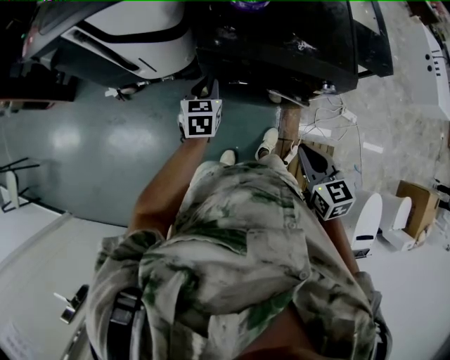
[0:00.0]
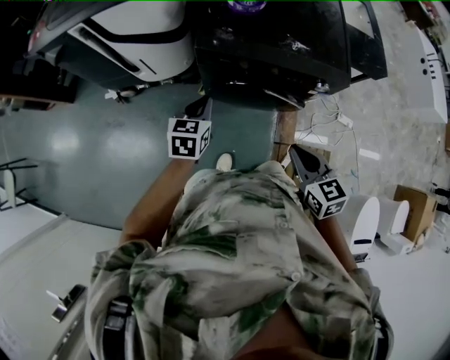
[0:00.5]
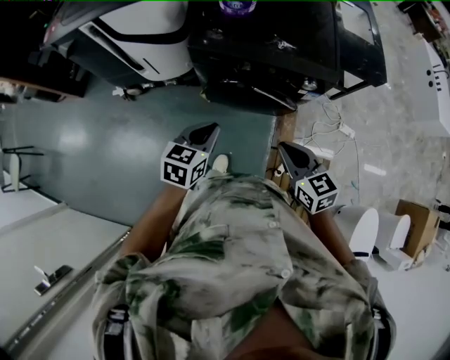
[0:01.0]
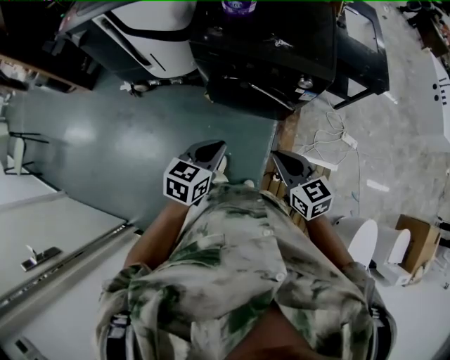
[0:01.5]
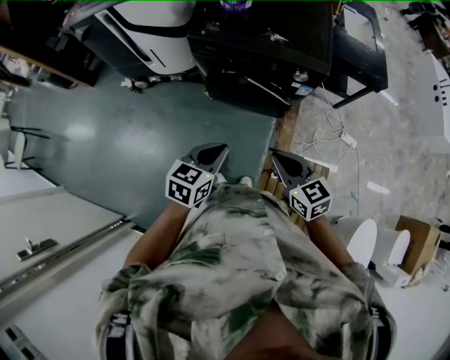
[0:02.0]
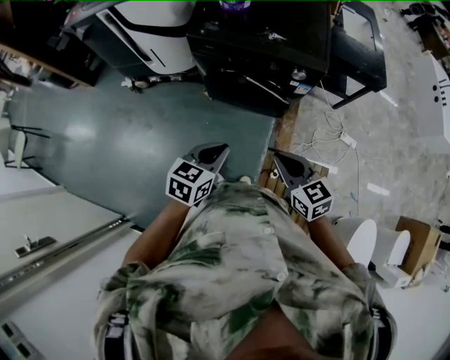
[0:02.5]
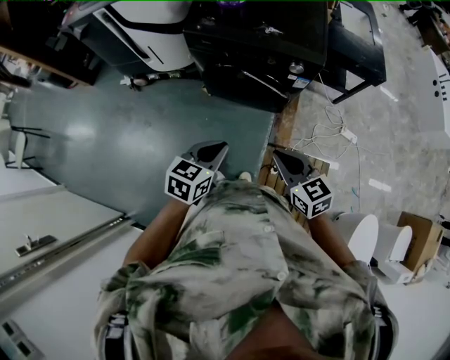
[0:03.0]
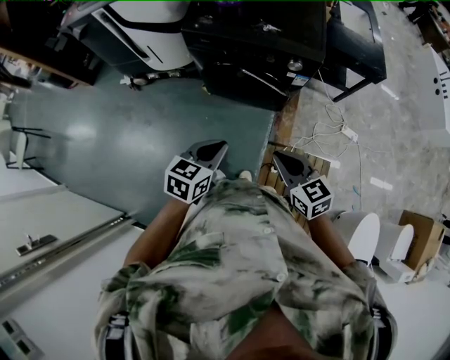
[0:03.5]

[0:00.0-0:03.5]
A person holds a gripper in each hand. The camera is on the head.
0:00.0 to 0:02.0: The left gripper is displaced backward and to the right by about 40 cm; the right gripper heads backward and to the right, covering some 20 cm, and swivels some 20 degrees.
0:02.0 to 0:03.5: The grippers move only a little.

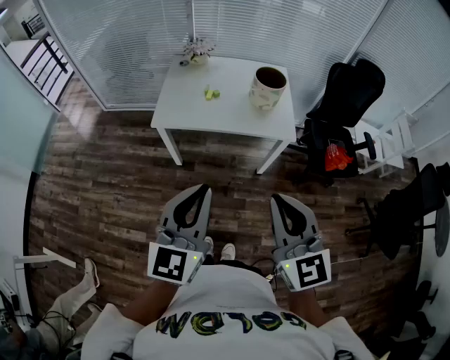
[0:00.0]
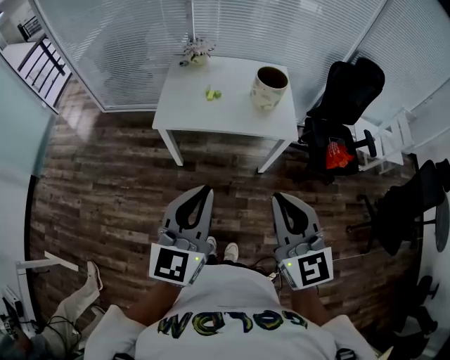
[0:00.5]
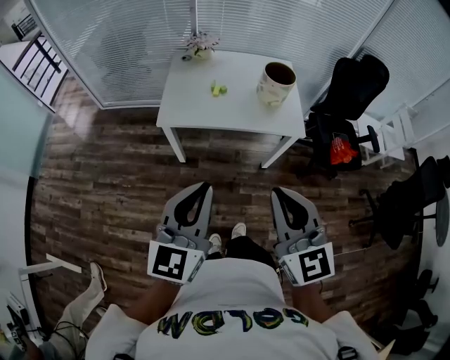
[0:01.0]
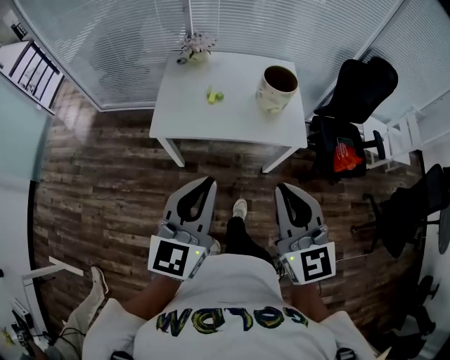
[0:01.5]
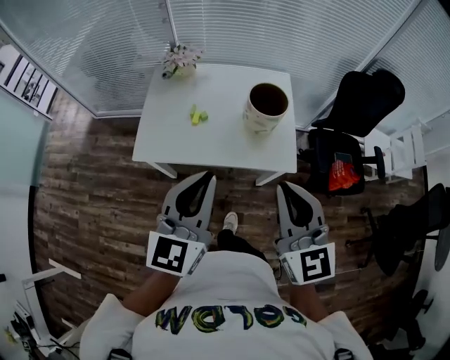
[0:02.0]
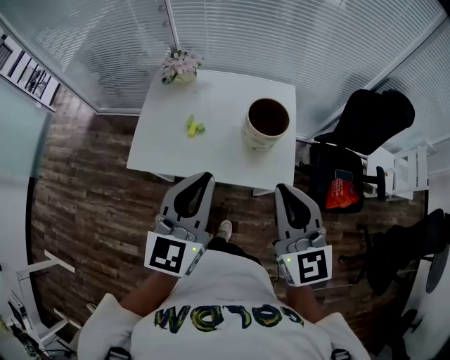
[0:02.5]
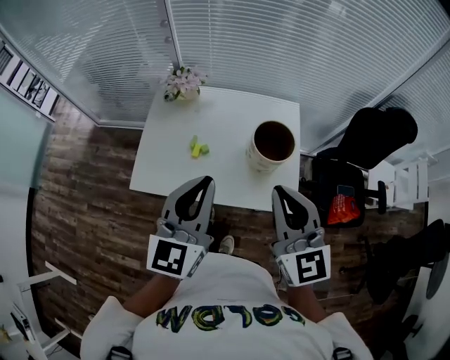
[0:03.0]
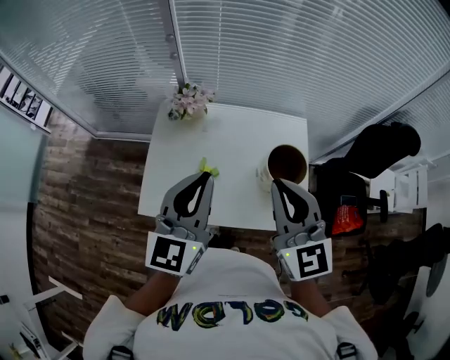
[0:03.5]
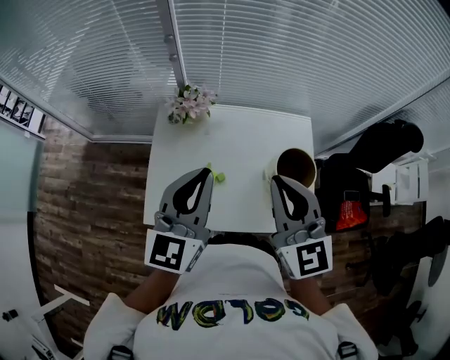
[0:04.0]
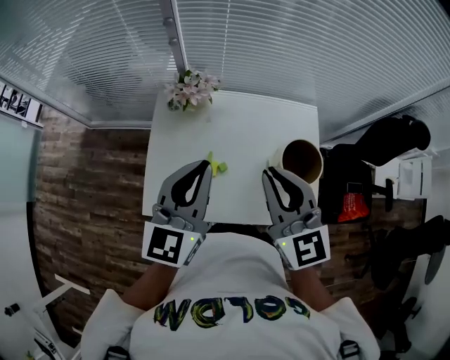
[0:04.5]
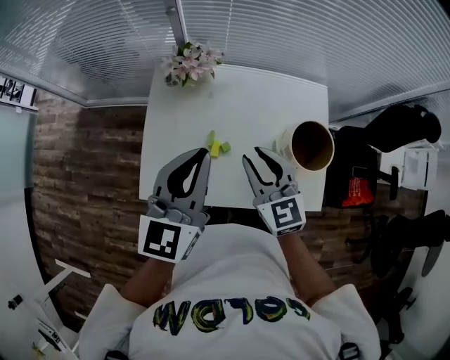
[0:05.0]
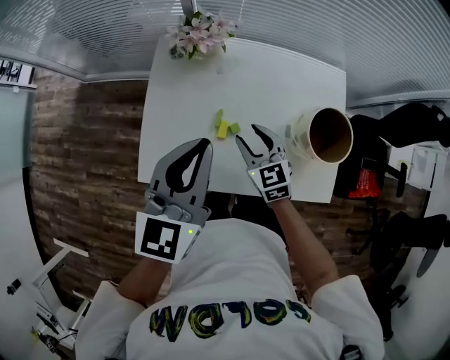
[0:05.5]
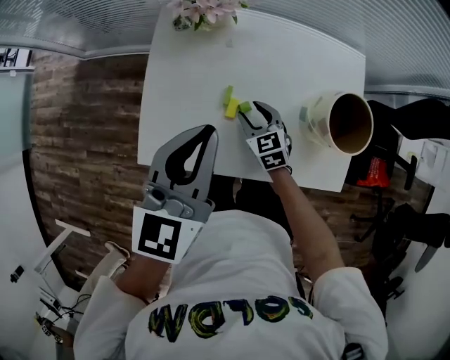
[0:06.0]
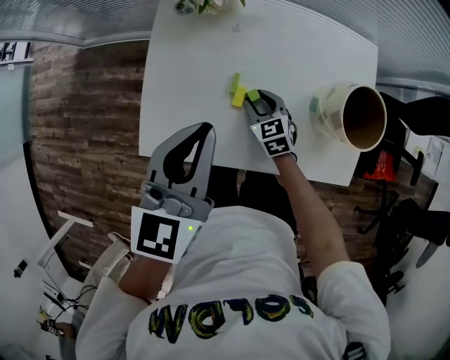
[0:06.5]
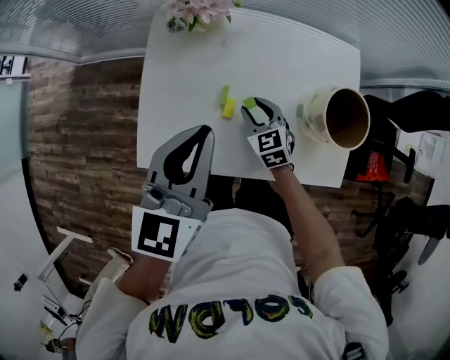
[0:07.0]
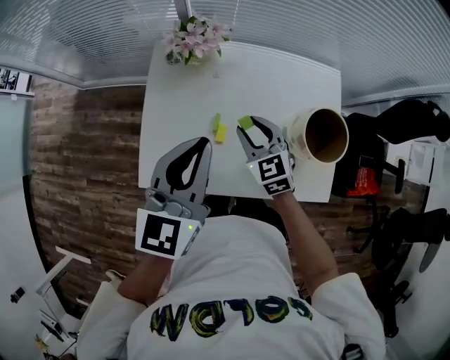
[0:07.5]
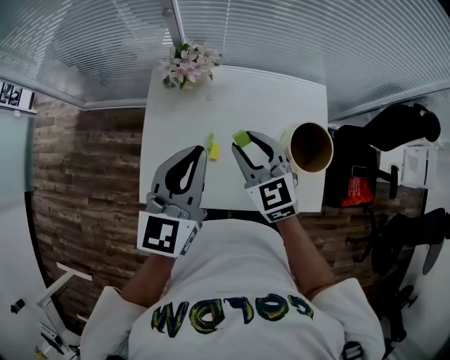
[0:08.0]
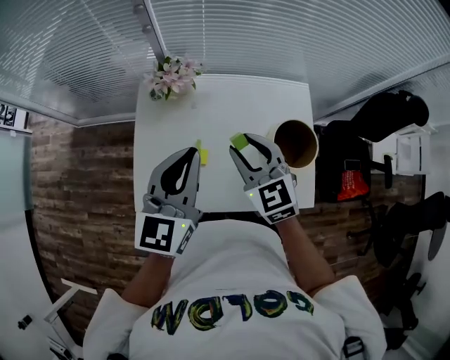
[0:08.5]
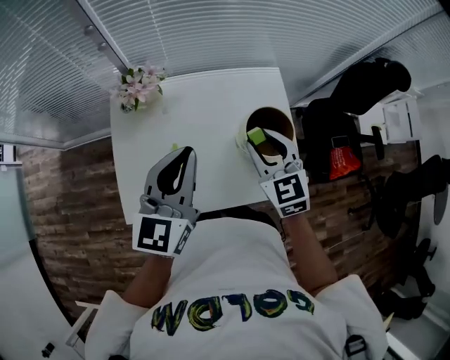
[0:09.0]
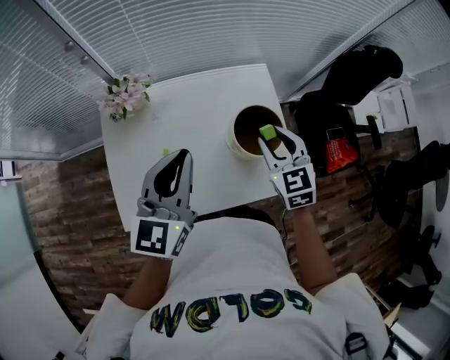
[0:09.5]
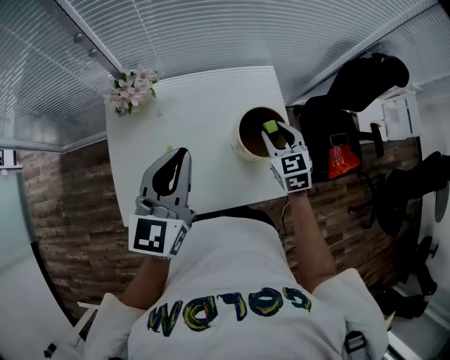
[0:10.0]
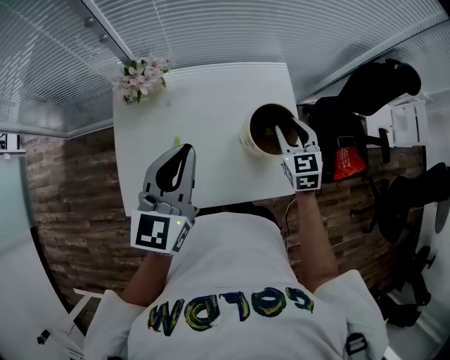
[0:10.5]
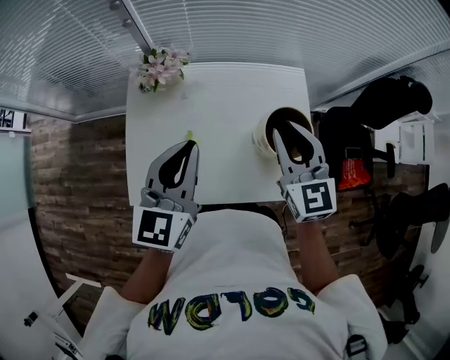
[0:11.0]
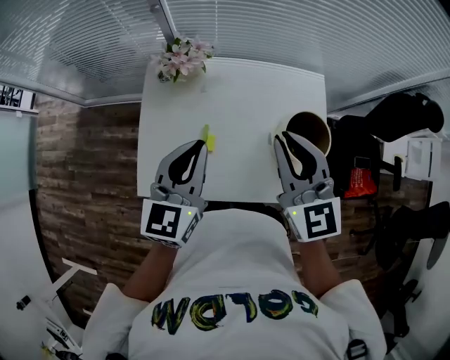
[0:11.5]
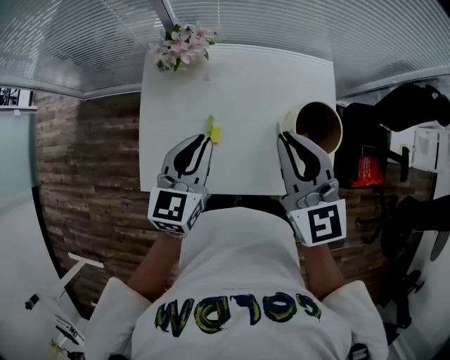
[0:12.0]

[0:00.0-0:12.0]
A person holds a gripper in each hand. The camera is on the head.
0:00.0 to 0:02.0: The grippers both shift forward by some 30 cm.
0:02.0 to 0:04.0: Both grippers move forward, roughly 30 cm.
0:04.0 to 0:06.0: The left gripper is displaced downward by roughly 15 cm, while the right gripper is displaced downward by roughly 40 cm, tilts its fingers about 40 degrees downward, and opens its fingers.
0:06.0 to 0:08.0: The right gripper moves upward, roughly 25 cm, while the left gripper is displaced upward by about 5 cm.
0:08.0 to 0:10.0: The left gripper moves to the right, some 10 cm. Meanwhile the right gripper heads to the right, covering roughly 25 cm, and changes its angle by some 30 degrees.
0:10.0 to 0:12.0: The left gripper shifts about 15 cm downward and to the left. Meanwhile the right gripper heads to the left and upward, covering roughly 25 cm, swivels about 30 degrees, and closes up.

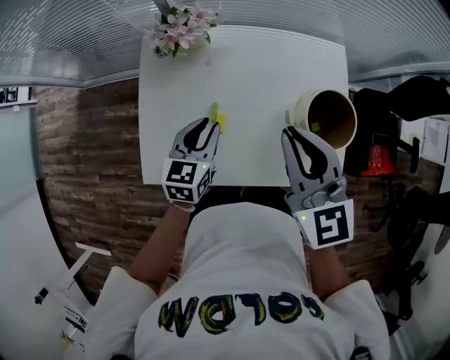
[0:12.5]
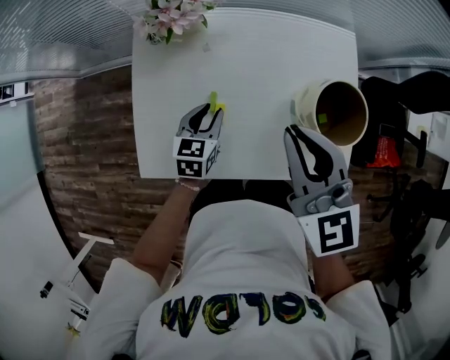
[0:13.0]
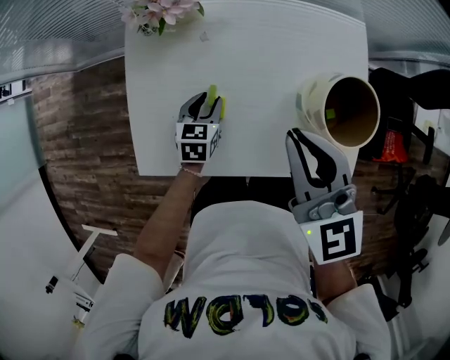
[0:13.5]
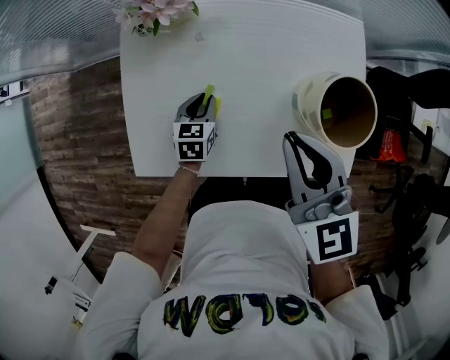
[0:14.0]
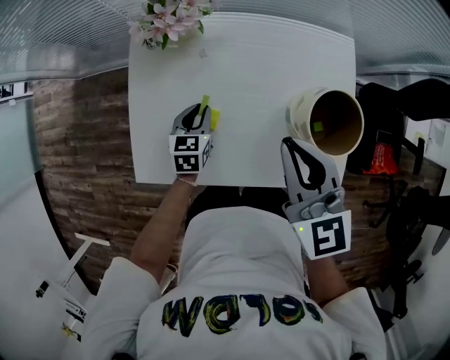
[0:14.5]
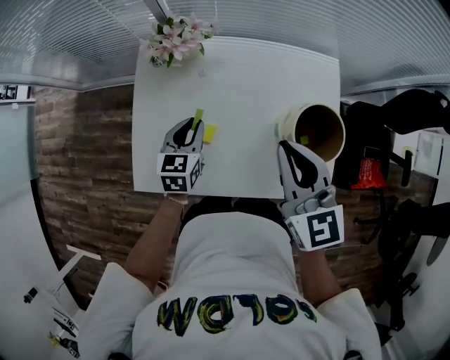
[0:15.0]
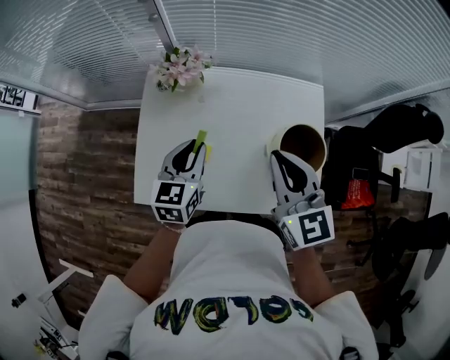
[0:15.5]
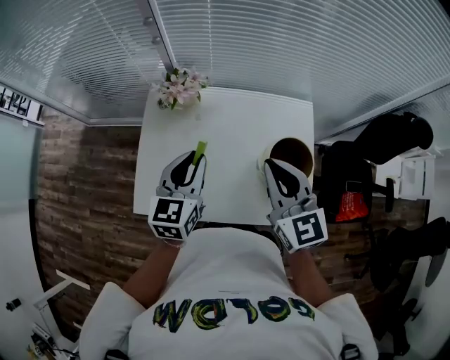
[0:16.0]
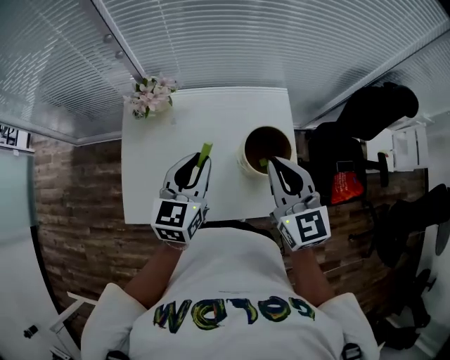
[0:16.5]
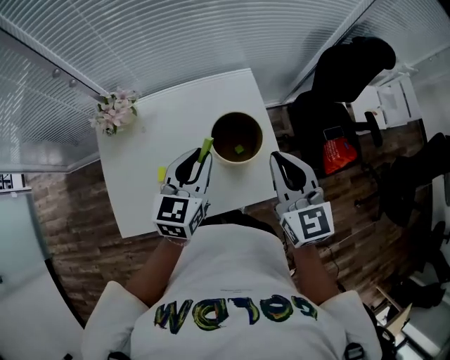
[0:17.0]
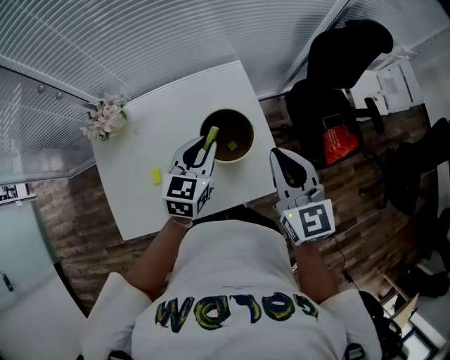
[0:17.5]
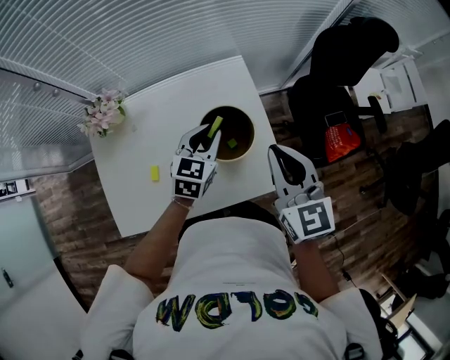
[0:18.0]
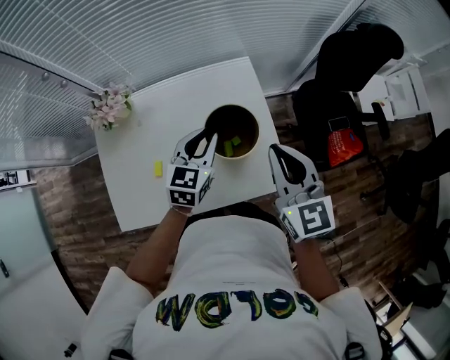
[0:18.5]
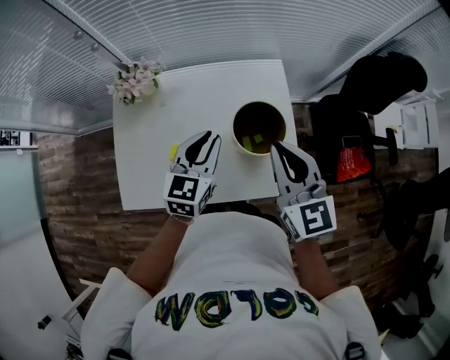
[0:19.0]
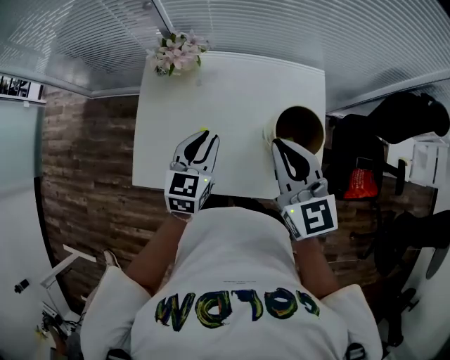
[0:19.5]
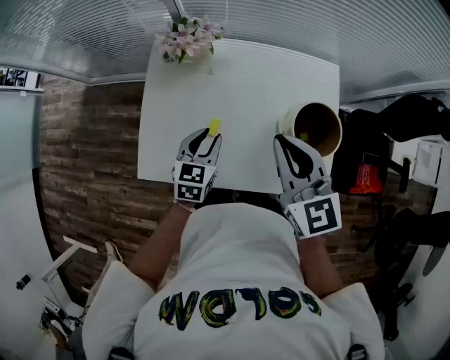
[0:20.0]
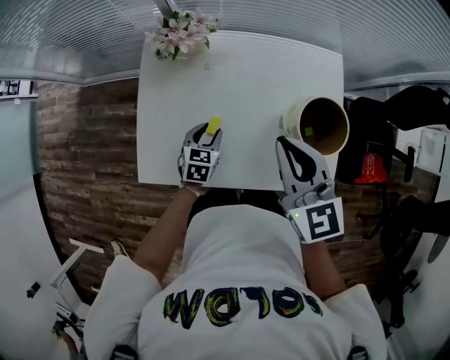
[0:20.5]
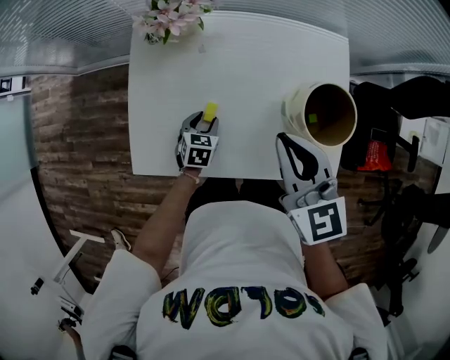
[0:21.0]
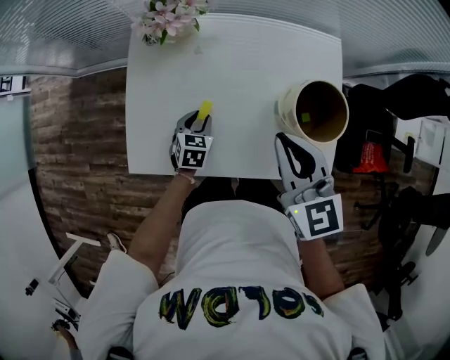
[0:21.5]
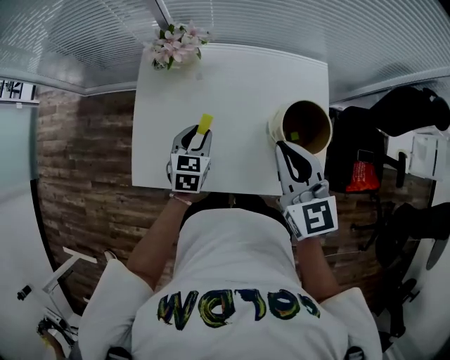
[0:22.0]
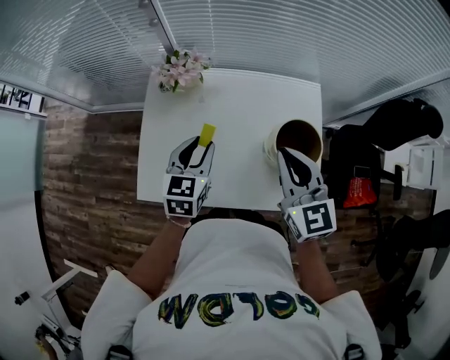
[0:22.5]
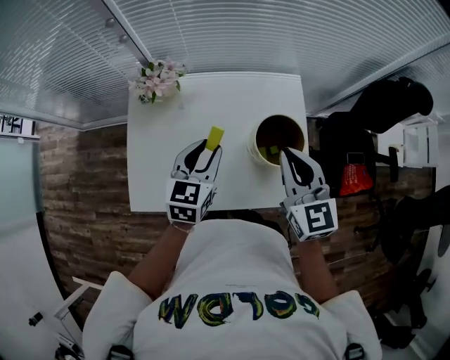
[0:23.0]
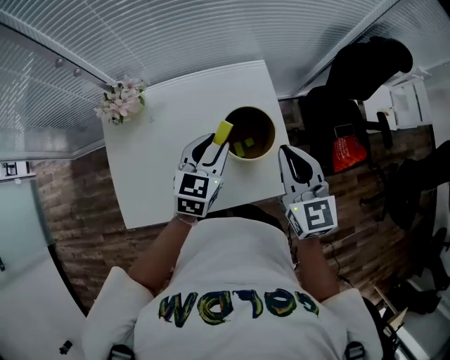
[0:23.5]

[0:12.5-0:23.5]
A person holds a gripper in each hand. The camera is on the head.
0:12.5 to 0:14.5: The right gripper changes place by roughly 5 cm. The left gripper travels downward by about 10 cm.
0:14.5 to 0:16.0: The left gripper shifts about 30 cm upward, and rotates about 20 degrees. The right gripper is displaced upward by approximately 10 cm.
0:16.0 to 0:18.0: The right gripper moves roughly 25 cm, and turns by approximately 20 degrees; the left gripper moves about 30 cm, and turns by some 30 degrees.
0:18.0 to 0:20.0: Both grippers move to the left, some 25 cm. The left gripper swivels about 30 degrees. Meanwhile the right gripper rotates some 30 degrees.
0:20.0 to 0:21.5: The right gripper moves downward, approximately 5 cm. The left gripper moves downward, roughly 15 cm.
0:21.5 to 0:23.5: The left gripper is displaced upward and to the right by about 35 cm, and rotates approximately 30 degrees. Meanwhile the right gripper is displaced to the right by some 20 cm, and swivels about 20 degrees.
